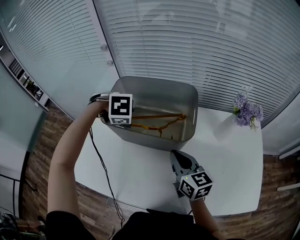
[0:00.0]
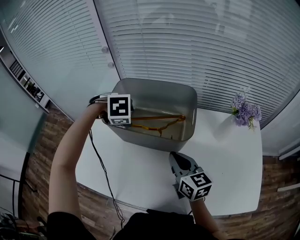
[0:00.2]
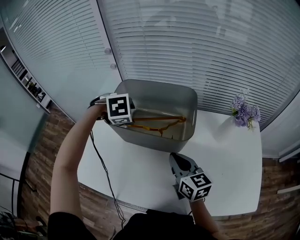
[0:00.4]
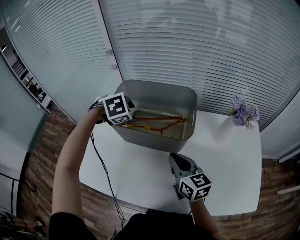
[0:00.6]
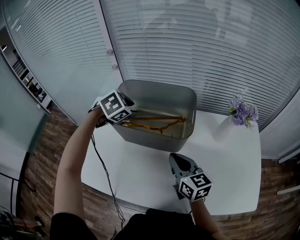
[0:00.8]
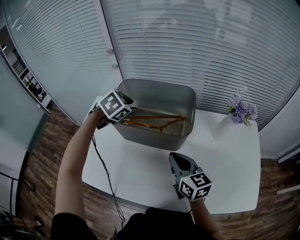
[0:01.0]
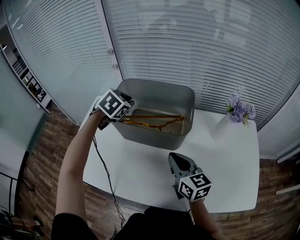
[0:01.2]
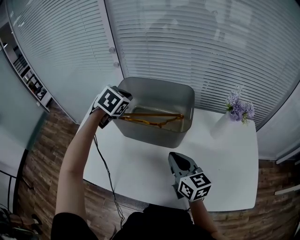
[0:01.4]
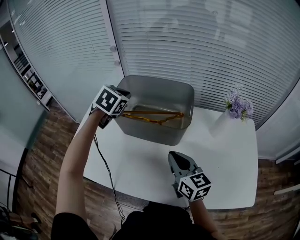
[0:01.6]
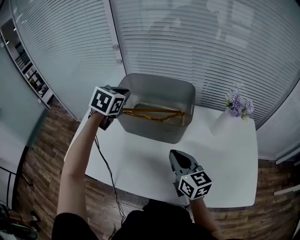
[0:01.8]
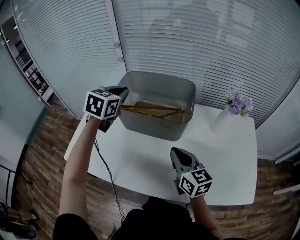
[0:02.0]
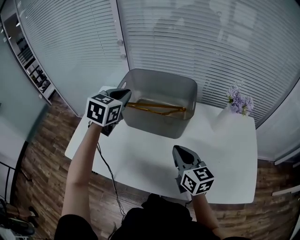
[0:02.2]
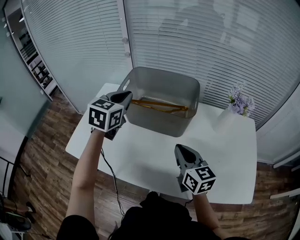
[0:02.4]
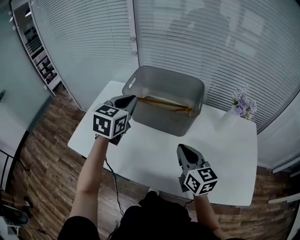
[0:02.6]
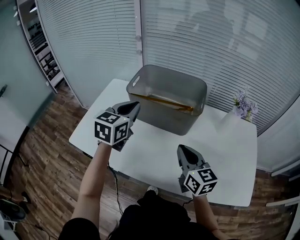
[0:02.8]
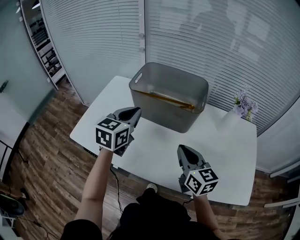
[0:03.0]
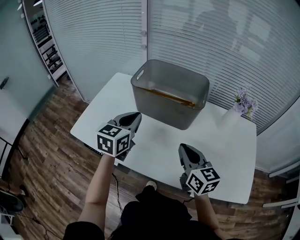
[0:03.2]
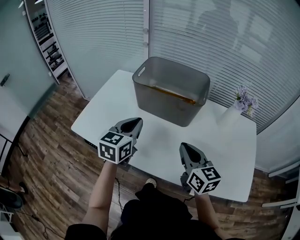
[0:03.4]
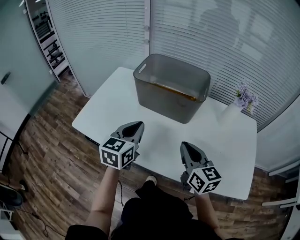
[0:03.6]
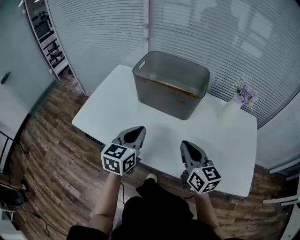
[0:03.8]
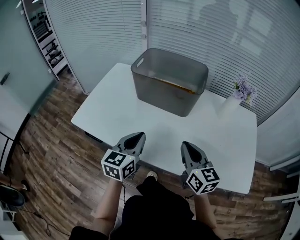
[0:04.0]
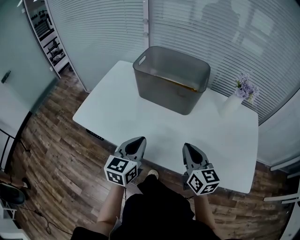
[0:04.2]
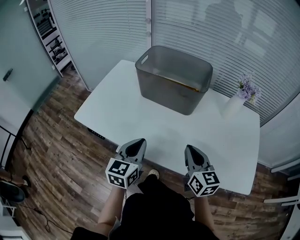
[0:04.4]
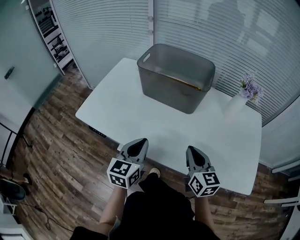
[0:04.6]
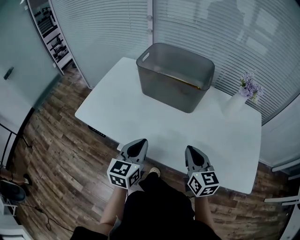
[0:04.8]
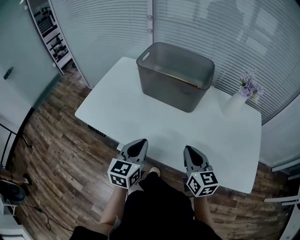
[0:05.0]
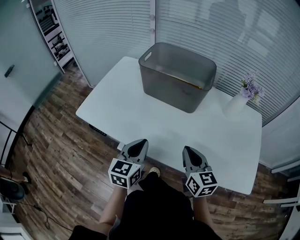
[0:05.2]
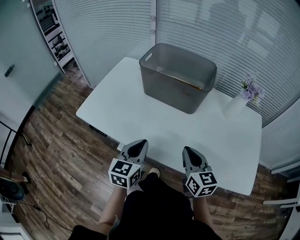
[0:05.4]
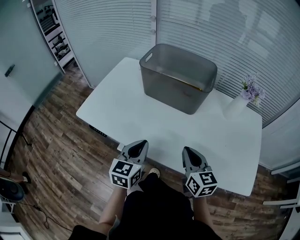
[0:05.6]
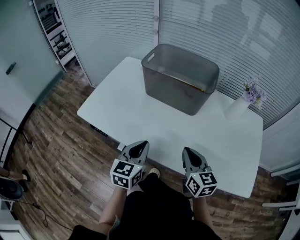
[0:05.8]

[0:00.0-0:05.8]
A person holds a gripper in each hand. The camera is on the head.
0:00.0 to 0:01.4: The left gripper goes some 10 cm upward, angles its fingers upward, by some 40 degrees, and closes its fingers. The right gripper shifts by some 5 cm.
0:01.4 to 0:02.8: The left gripper moves backward, approximately 15 cm, and turns by some 40 degrees. The right gripper shifts some 5 cm backward.
0:02.8 to 0:04.4: The right gripper shifts roughly 10 cm backward. The left gripper heads backward and downward, covering roughly 25 cm.
0:04.4 to 0:05.8: The grippers make only small movements.

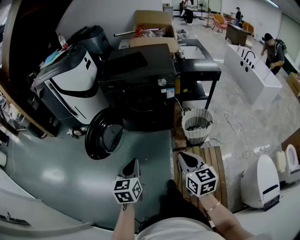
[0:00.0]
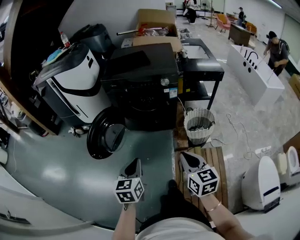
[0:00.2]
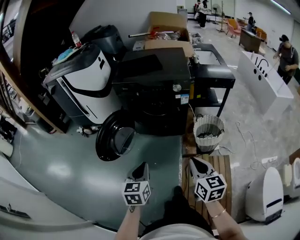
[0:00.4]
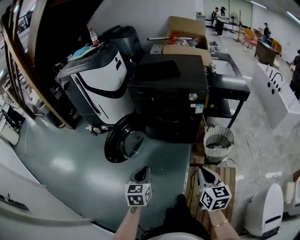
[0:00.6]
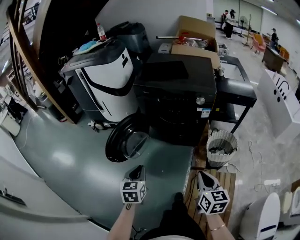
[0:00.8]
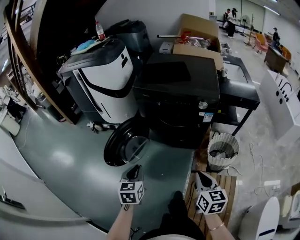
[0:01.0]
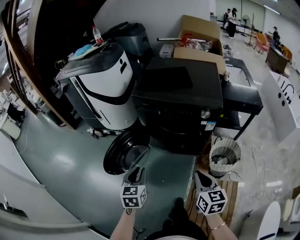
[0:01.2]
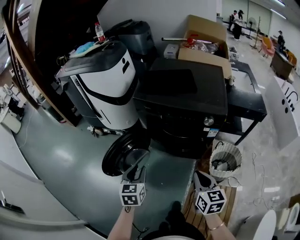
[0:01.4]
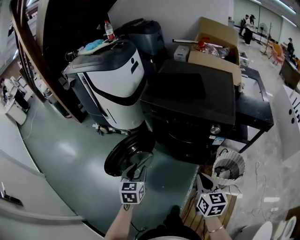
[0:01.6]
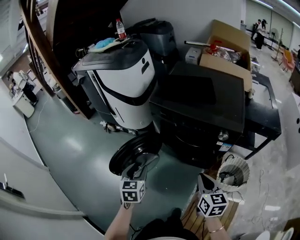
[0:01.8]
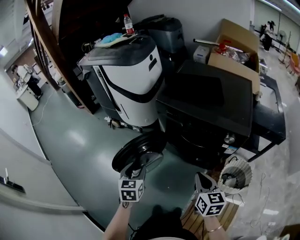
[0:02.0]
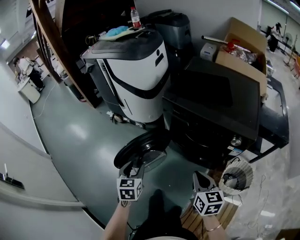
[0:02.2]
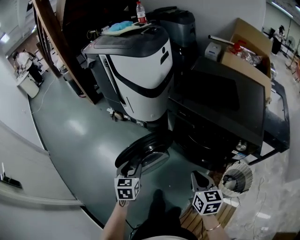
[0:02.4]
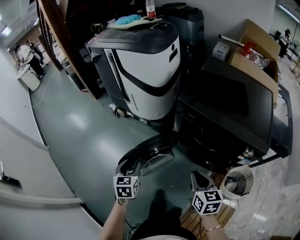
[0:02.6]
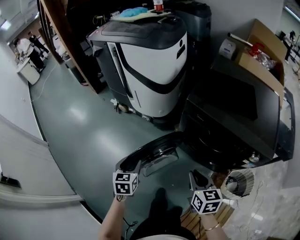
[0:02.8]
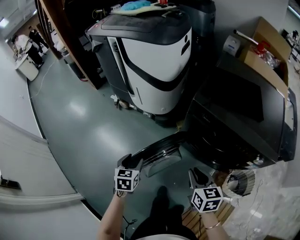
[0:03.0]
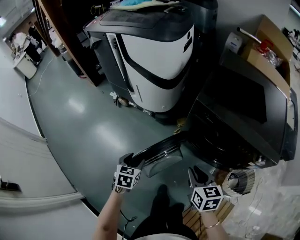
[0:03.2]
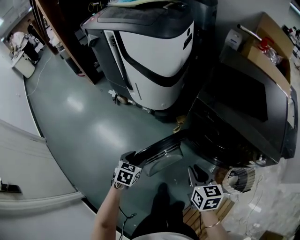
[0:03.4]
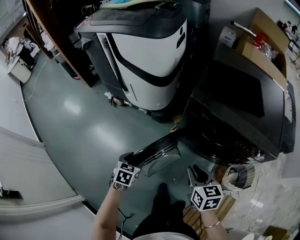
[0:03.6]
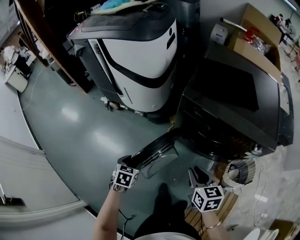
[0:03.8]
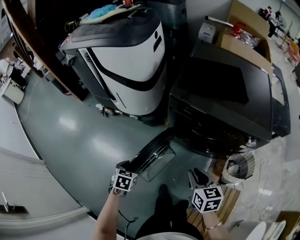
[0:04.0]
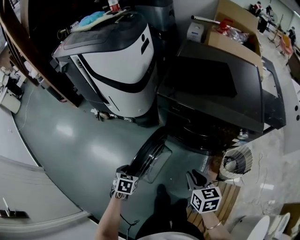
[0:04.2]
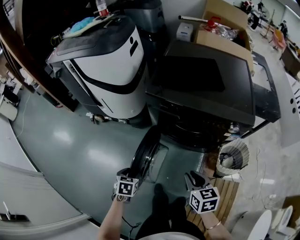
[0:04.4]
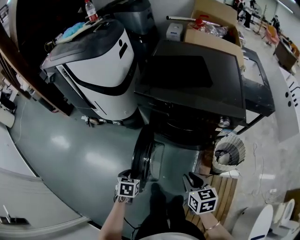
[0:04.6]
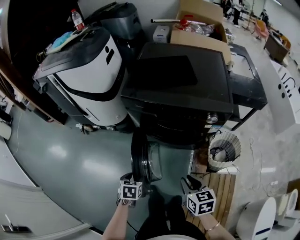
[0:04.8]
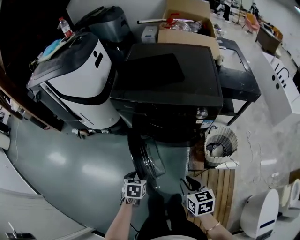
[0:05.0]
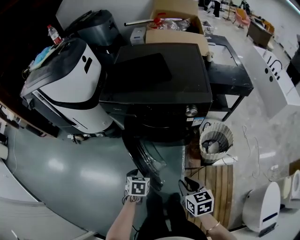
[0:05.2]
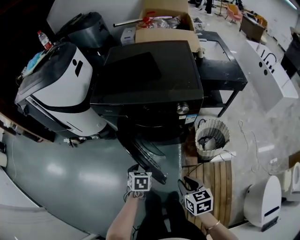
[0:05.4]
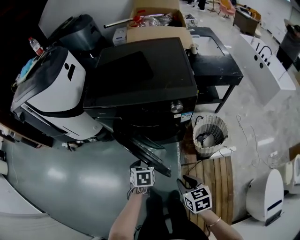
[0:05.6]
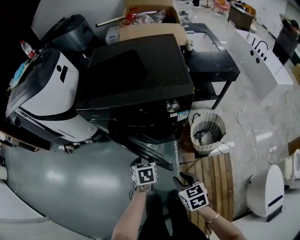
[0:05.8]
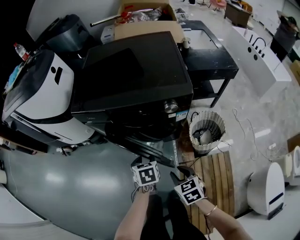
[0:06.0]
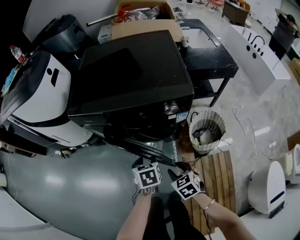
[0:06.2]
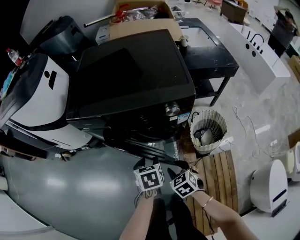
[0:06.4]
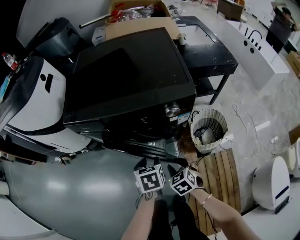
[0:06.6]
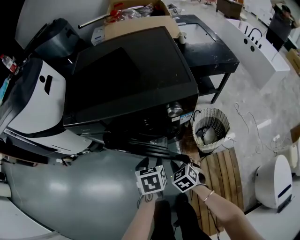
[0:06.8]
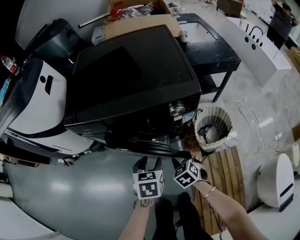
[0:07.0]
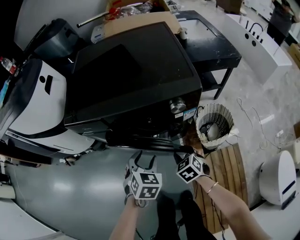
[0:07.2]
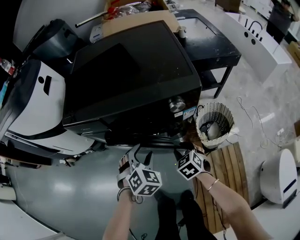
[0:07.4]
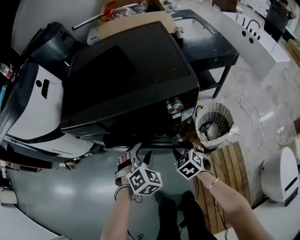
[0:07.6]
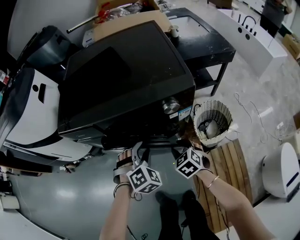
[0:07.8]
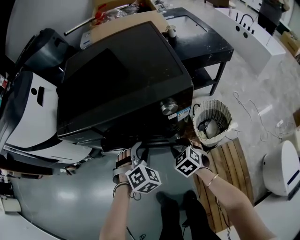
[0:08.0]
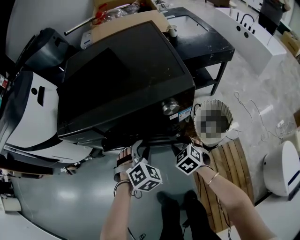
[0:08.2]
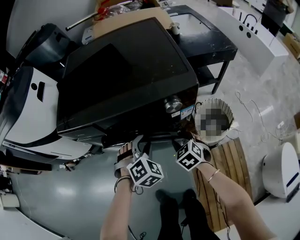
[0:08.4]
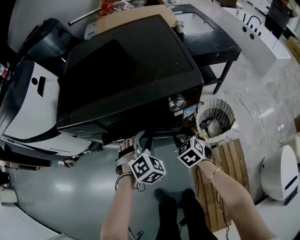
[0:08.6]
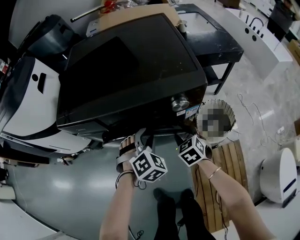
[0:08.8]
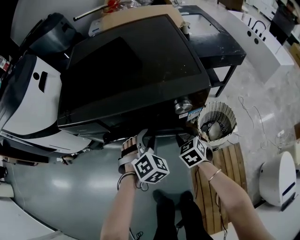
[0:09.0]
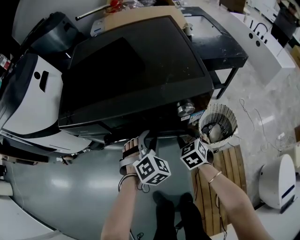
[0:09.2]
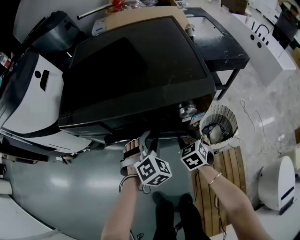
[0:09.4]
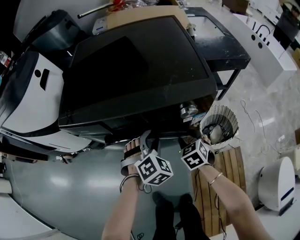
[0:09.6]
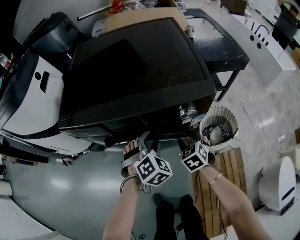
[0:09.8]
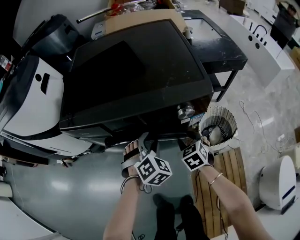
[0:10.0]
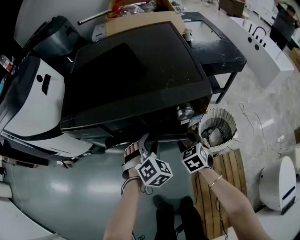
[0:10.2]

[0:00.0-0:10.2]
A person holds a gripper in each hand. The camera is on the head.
0:00.0 to 0:01.4: Both grippers travel together forward, about 30 cm. The left gripper opens.
0:01.4 to 0:03.0: The left gripper moves forward, to the left and downward, roughly 35 cm, swivels approximately 20 degrees, and opens. Meanwhile the right gripper goes about 35 cm forward and to the left, and turns by roughly 20 degrees.
0:03.0 to 0:04.4: The left gripper shifts about 15 cm to the right, backward and downward, and changes its angle by approximately 30 degrees. The right gripper heads to the right and backward, covering roughly 15 cm.
0:04.4 to 0:05.8: The left gripper travels to the right by about 35 cm; the right gripper goes roughly 25 cm to the right, backward and downward.
0:05.8 to 0:07.2: The right gripper heads forward and downward, covering some 20 cm, and rotates some 20 degrees, while the left gripper heads forward, covering about 10 cm, and turns by about 40 degrees.
0:07.2 to 0:08.8: The grippers both shift forward by some 10 cm. The left gripper turns by approximately 30 degrees.
0:08.8 to 0:10.2: The grippers move only a little.

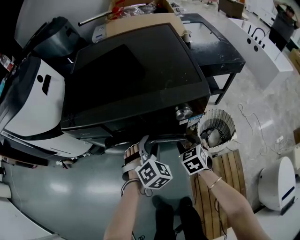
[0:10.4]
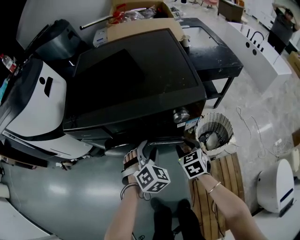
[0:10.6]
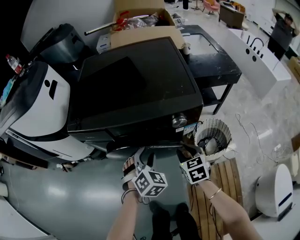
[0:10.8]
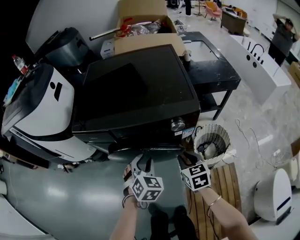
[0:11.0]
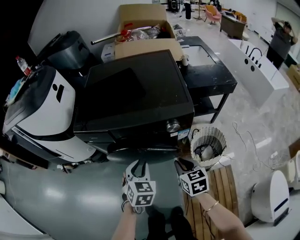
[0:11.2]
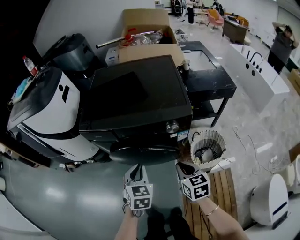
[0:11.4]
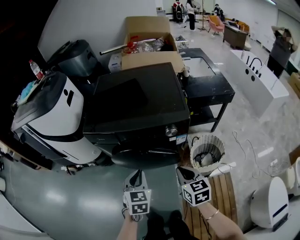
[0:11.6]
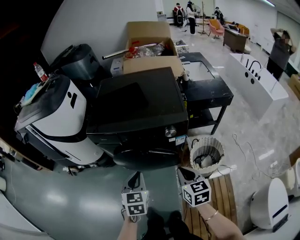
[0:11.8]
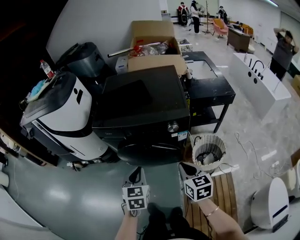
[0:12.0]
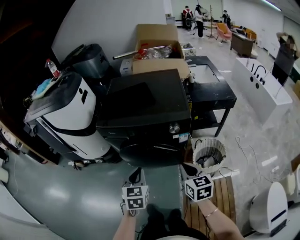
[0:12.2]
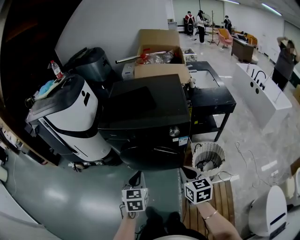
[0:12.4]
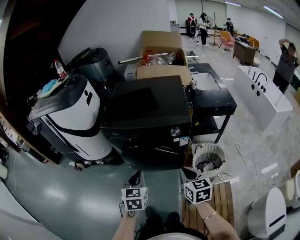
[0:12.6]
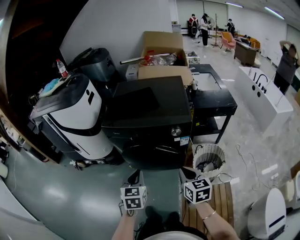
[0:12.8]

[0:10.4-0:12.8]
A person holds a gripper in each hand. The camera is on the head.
0:10.4 to 0:11.6: The right gripper travels upward and backward by some 30 cm, changes its angle by approximately 30 degrees, and closes, while the left gripper heads backward and upward, covering roughly 25 cm, rotates around the line of its fingers by some 40 degrees, counterclockwise from behind, and closes up.
0:11.6 to 0:12.8: Both grippers travel together backward and upward, some 15 cm.

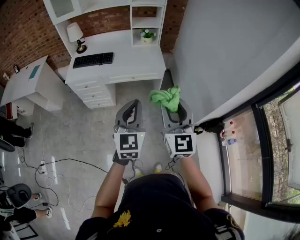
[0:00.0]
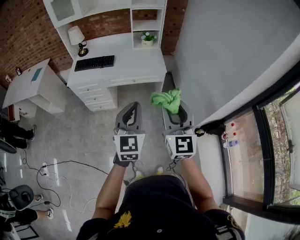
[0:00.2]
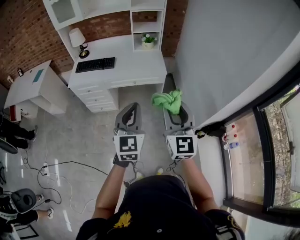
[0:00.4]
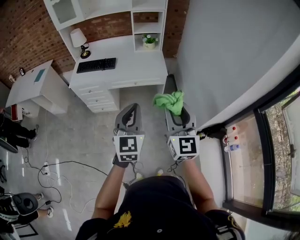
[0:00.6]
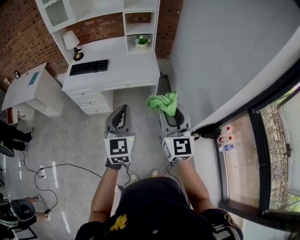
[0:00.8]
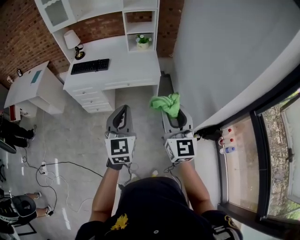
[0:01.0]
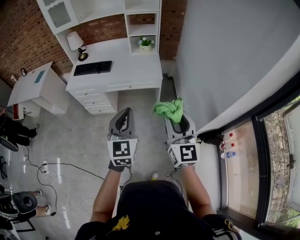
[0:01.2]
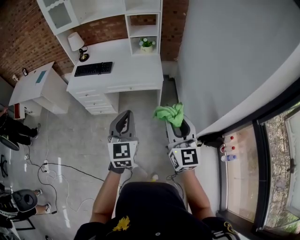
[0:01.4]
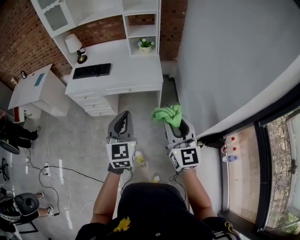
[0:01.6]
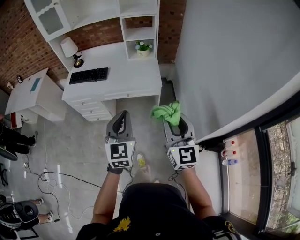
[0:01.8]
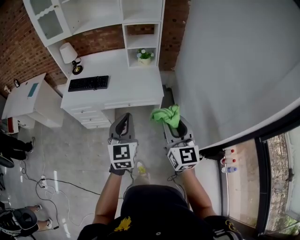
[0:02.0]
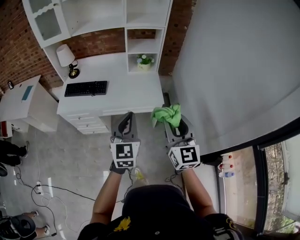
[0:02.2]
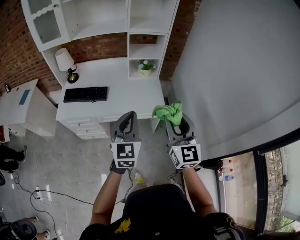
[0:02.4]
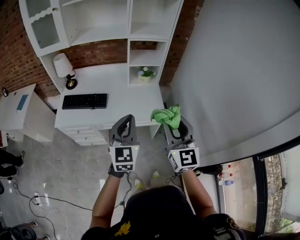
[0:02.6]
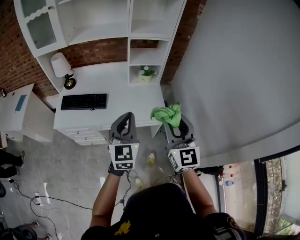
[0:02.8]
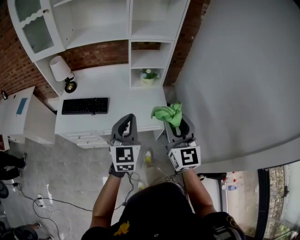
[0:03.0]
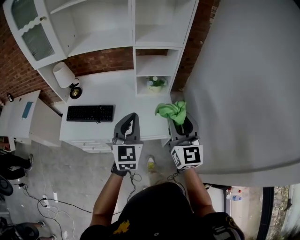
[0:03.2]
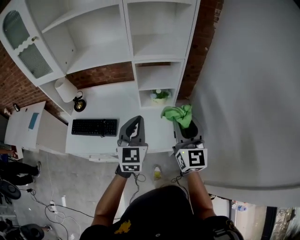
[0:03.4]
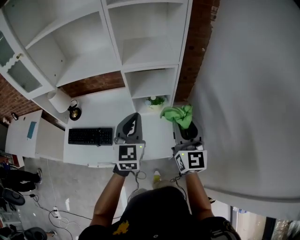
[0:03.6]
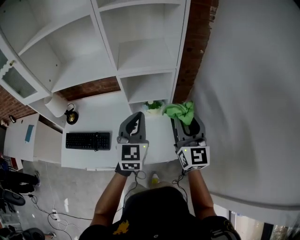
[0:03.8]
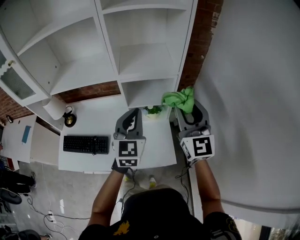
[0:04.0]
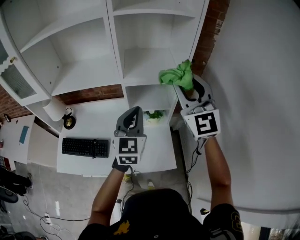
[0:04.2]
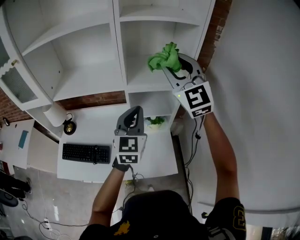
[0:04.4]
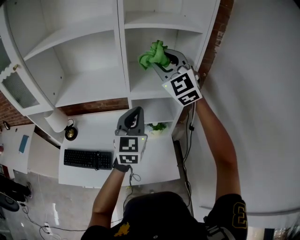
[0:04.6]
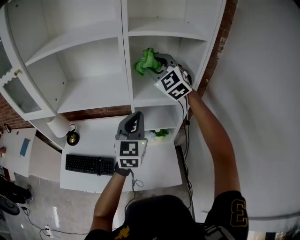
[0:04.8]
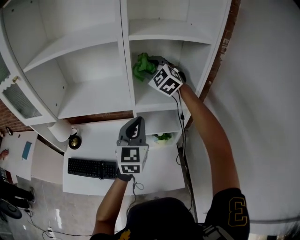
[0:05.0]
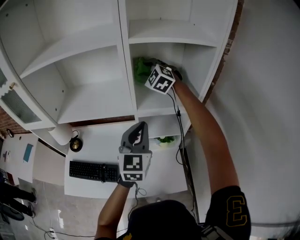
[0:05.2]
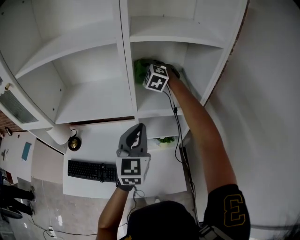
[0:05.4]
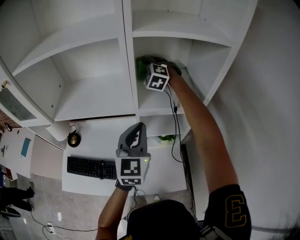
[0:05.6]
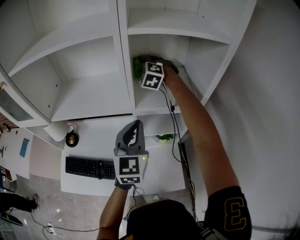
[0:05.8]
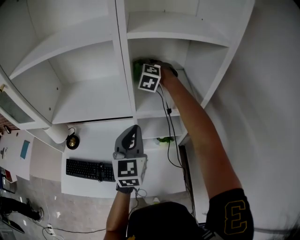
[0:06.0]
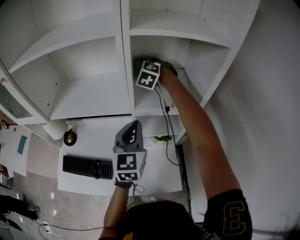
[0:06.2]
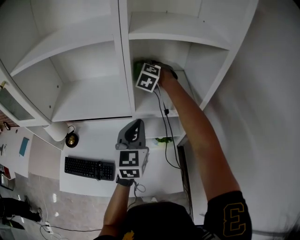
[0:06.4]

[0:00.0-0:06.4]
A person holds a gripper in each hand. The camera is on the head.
0:00.0 to 0:01.6: The left gripper heads to the right and forward, covering some 10 cm; the right gripper is displaced to the right by roughly 15 cm.
0:01.6 to 0:03.2: The pair of grippers is taken forward, roughly 50 cm.
0:03.2 to 0:04.8: The right gripper heads forward, covering about 50 cm, and twists some 40 degrees counterclockwise, seen from behind. The left gripper goes some 35 cm forward.
0:04.8 to 0:06.4: The right gripper travels forward and downward by roughly 20 cm, and rotates approximately 30 degrees. Meanwhile the left gripper heads forward, covering some 5 cm.
